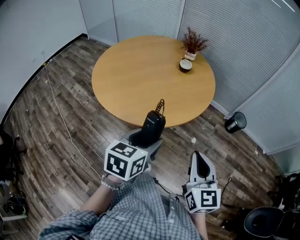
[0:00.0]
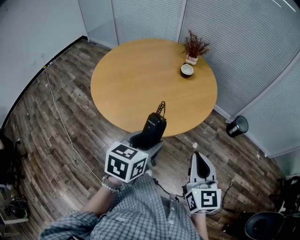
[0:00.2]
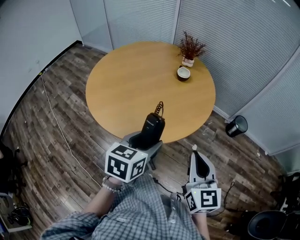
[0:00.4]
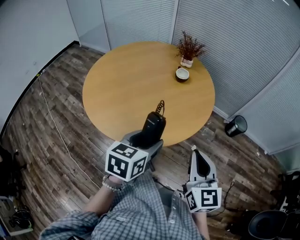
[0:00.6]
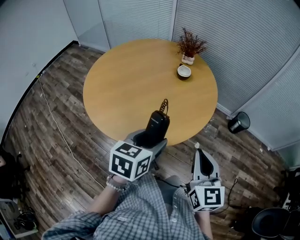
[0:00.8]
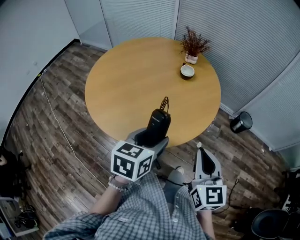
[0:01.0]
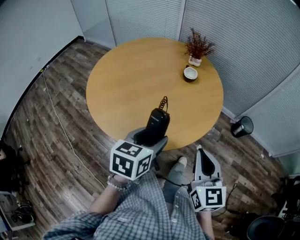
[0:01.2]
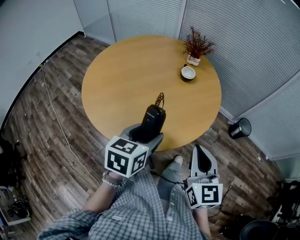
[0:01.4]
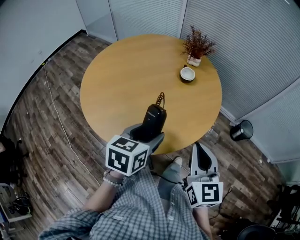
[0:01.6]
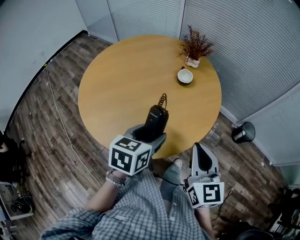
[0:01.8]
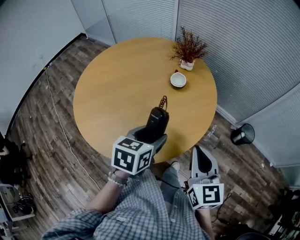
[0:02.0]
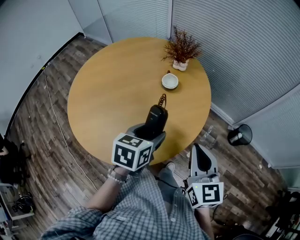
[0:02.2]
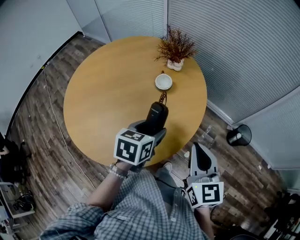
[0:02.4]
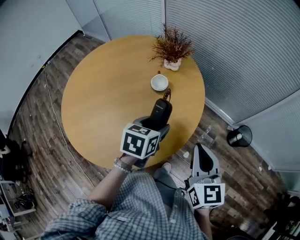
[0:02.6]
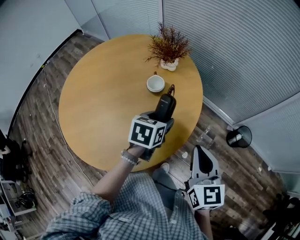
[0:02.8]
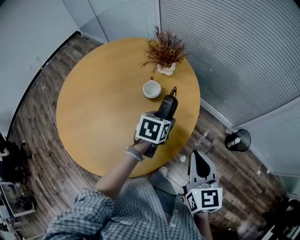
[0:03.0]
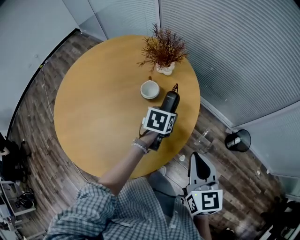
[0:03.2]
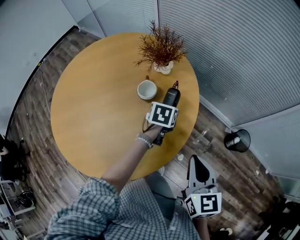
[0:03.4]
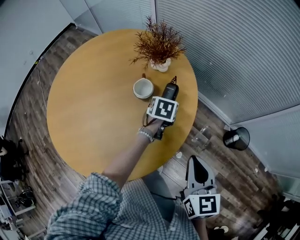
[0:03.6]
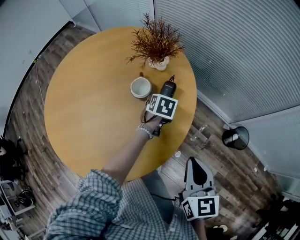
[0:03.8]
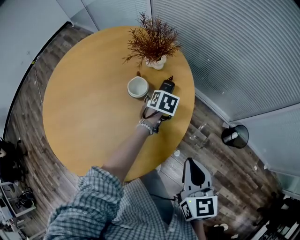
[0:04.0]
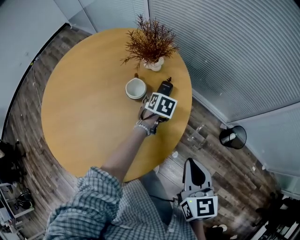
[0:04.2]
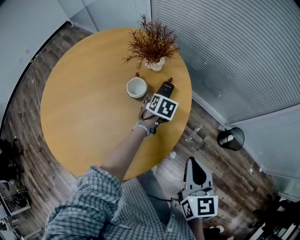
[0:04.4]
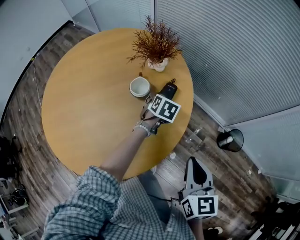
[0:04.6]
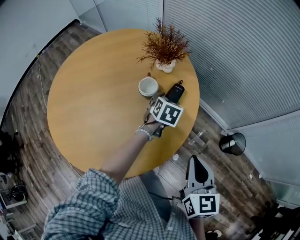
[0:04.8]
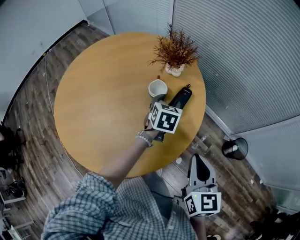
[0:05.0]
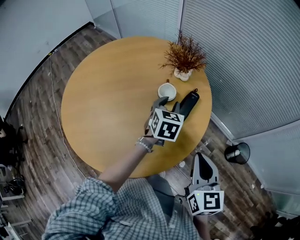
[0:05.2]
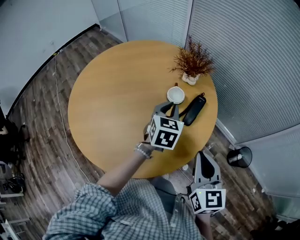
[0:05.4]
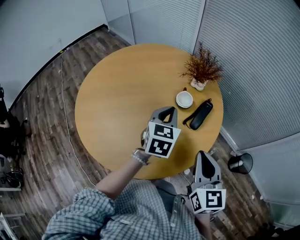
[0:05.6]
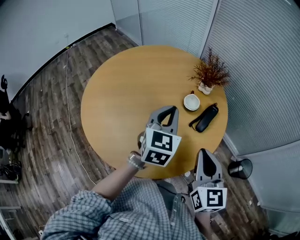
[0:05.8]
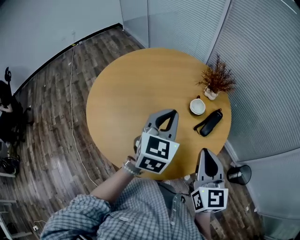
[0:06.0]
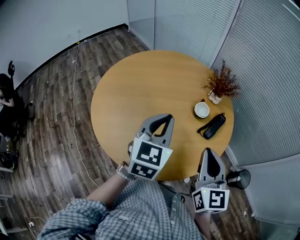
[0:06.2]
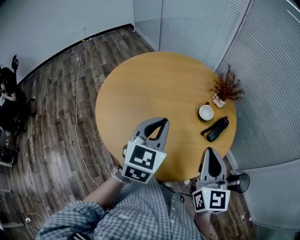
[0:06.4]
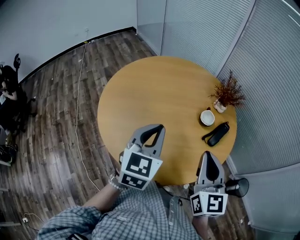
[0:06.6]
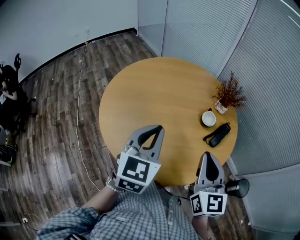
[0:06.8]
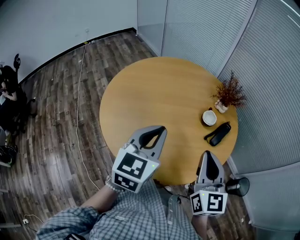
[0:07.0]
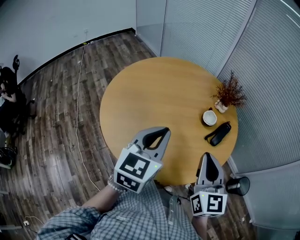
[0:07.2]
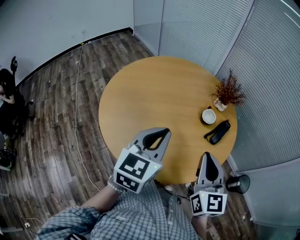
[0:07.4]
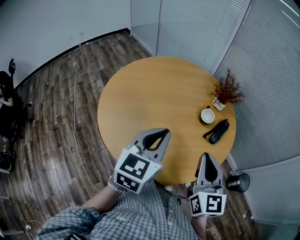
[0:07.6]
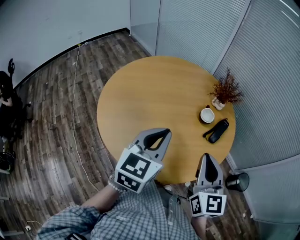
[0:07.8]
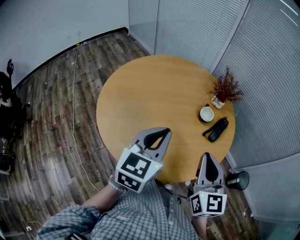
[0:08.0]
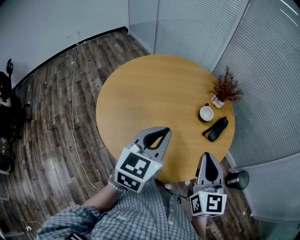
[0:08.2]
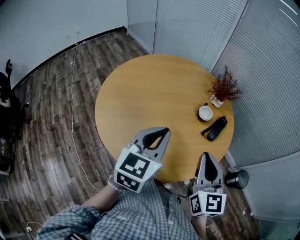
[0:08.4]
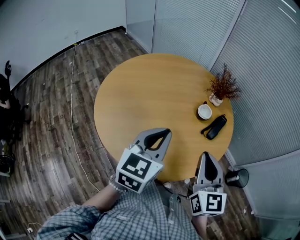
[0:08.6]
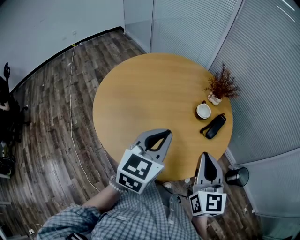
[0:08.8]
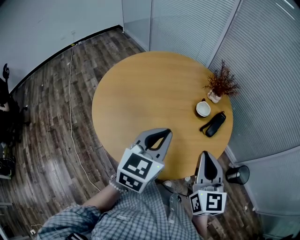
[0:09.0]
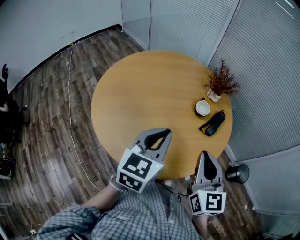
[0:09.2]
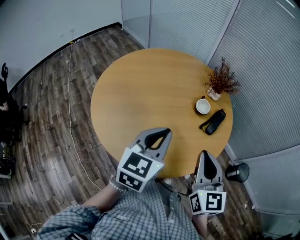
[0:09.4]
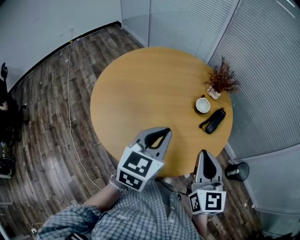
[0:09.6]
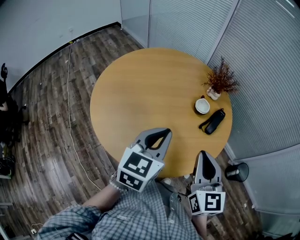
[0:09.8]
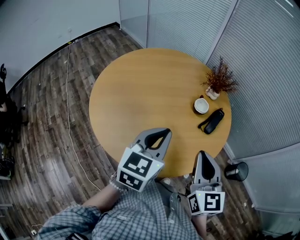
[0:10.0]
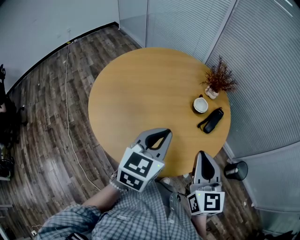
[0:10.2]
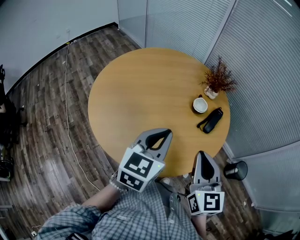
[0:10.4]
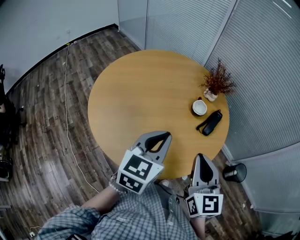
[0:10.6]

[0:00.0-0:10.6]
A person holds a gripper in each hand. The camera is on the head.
0:00.0 to 0:01.6: Both grippers move forward, roughly 20 cm.
0:01.6 to 0:03.0: Both grippers move forward and to the right, some 30 cm.
0:03.0 to 0:04.6: The right gripper shifts by roughly 5 cm, while the left gripper is displaced forward and downward by about 15 cm.
0:04.6 to 0:06.0: The left gripper shifts approximately 40 cm upward, to the left and backward, points its fingers about 40 degrees further upward, and closes up. The right gripper travels to the left and upward by approximately 20 cm, and rotates roughly 20 degrees.
0:06.0 to 0:07.6: The left gripper travels to the left and backward by approximately 15 cm, while the right gripper moves to the left, approximately 5 cm.
0:07.6 to 0:10.6: The grippers move only a little.

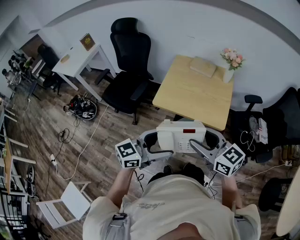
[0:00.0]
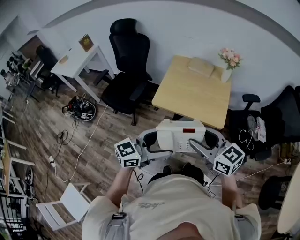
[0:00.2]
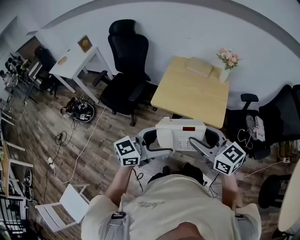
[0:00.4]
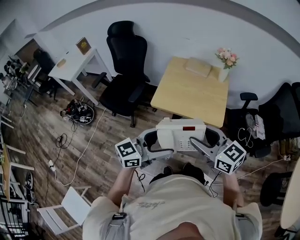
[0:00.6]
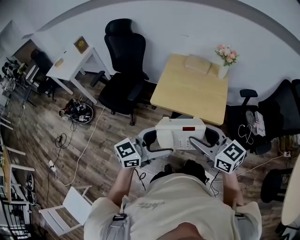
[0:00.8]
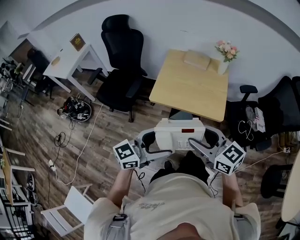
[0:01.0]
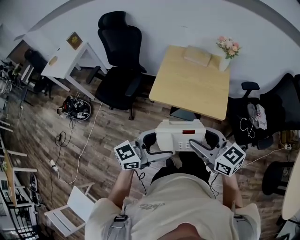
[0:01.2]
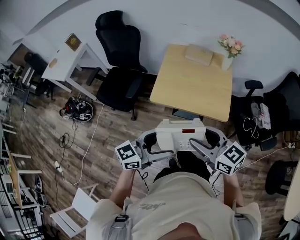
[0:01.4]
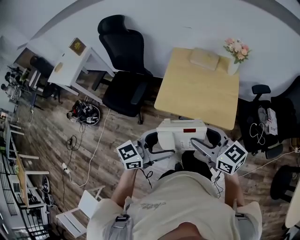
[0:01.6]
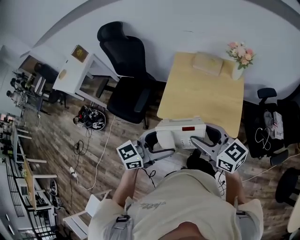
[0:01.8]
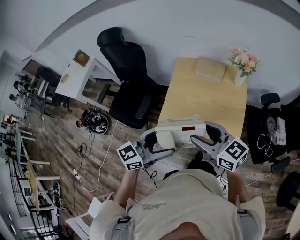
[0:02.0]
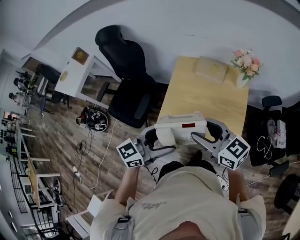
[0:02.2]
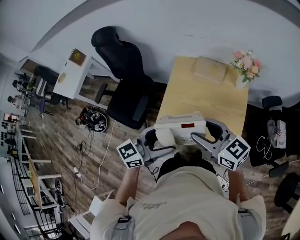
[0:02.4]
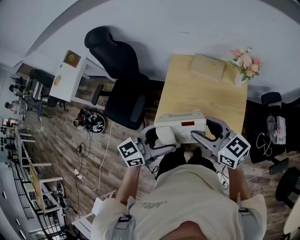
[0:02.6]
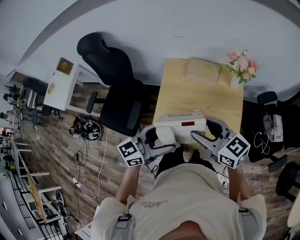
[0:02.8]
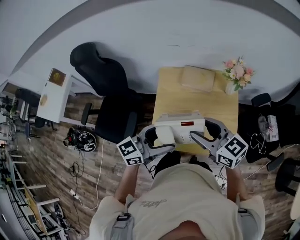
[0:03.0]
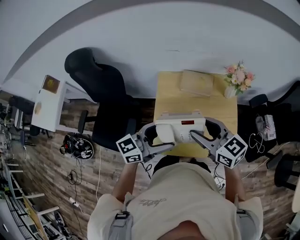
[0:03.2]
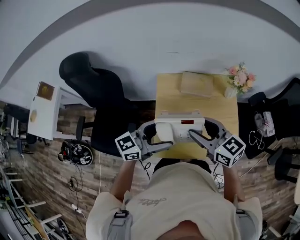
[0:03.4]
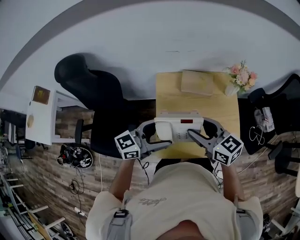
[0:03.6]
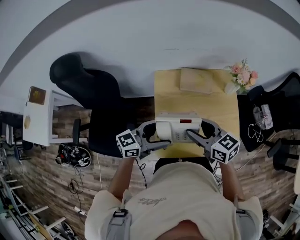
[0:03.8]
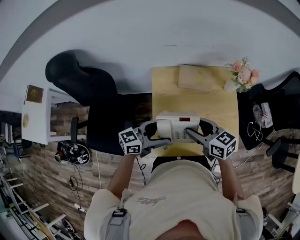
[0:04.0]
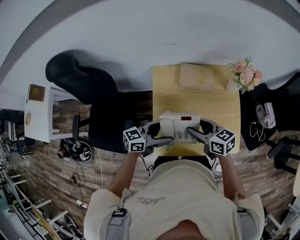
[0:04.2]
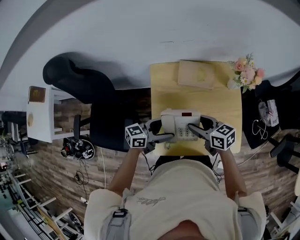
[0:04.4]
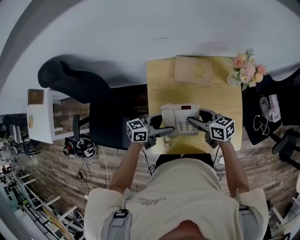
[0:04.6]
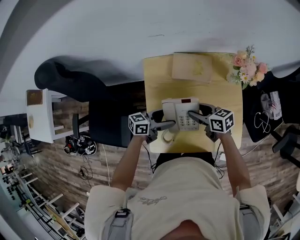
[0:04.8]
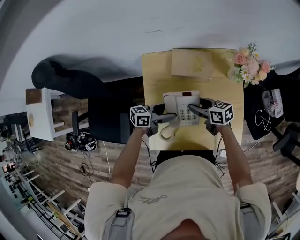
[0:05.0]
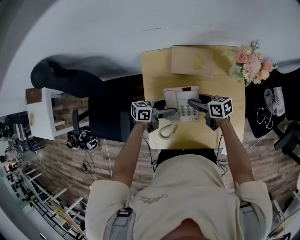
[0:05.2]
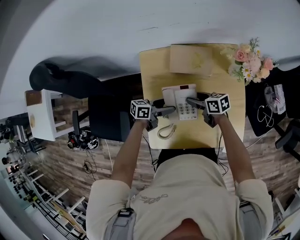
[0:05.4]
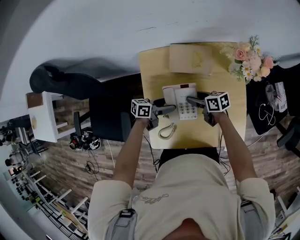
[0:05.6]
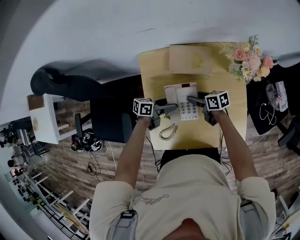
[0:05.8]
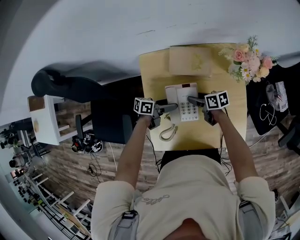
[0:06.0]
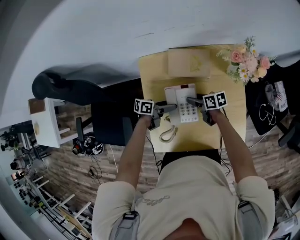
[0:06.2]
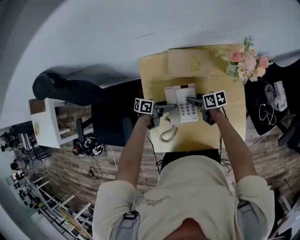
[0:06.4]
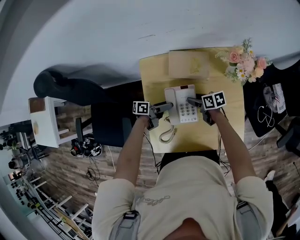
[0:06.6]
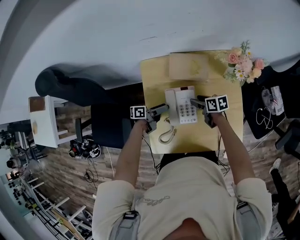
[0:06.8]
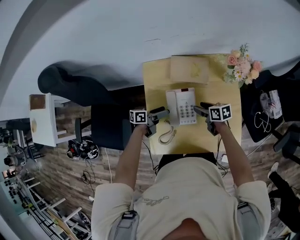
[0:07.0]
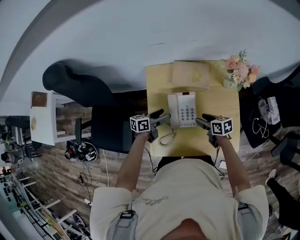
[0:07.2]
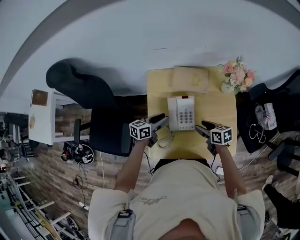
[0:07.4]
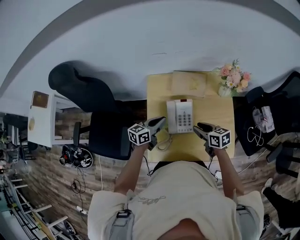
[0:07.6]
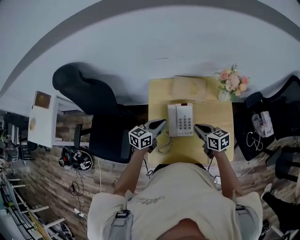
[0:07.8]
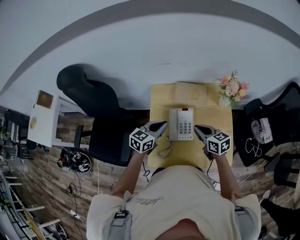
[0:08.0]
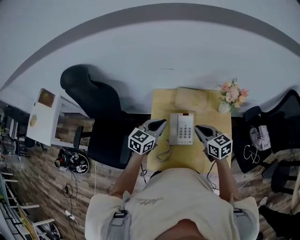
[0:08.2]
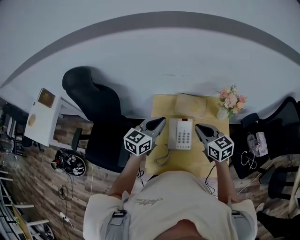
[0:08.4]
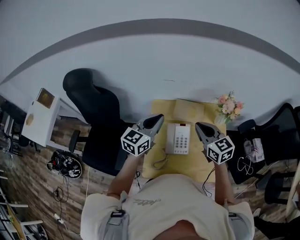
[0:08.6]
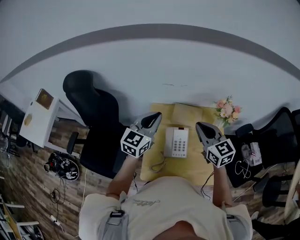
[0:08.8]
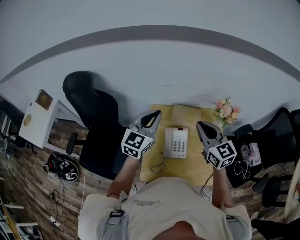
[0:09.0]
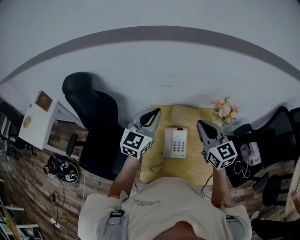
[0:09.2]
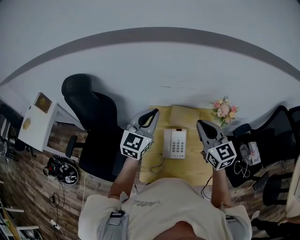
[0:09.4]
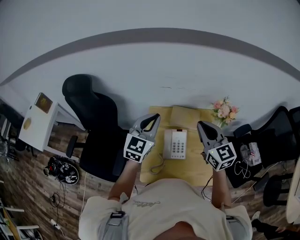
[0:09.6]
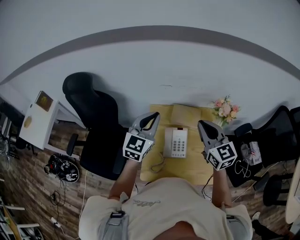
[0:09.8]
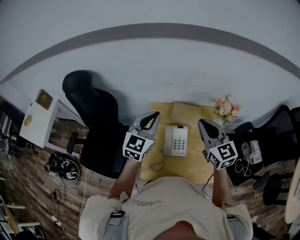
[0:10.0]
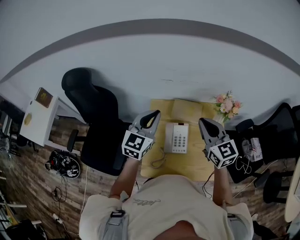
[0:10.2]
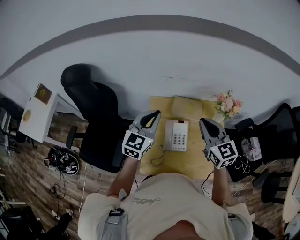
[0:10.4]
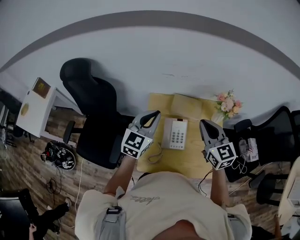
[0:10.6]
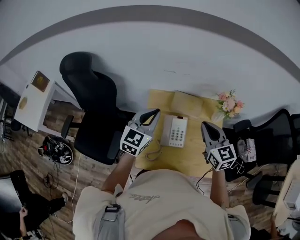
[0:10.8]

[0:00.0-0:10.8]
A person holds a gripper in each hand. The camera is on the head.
0:00.0 to 0:01.6: Both grippers move forward, approximately 10 cm.
0:01.6 to 0:03.0: The grippers both shift forward by about 30 cm.
0:03.0 to 0:04.6: Both grippers travel together downward, about 20 cm. The right gripper rotates about 30 degrees. Meanwhile the left gripper turns by some 30 degrees.
0:04.6 to 0:06.2: Both grippers travel together downward, roughly 15 cm. The right gripper swivels approximately 20 degrees. The left gripper changes its angle by about 30 degrees.
0:06.2 to 0:07.8: The two grippers go about 15 cm upward. The right gripper turns by some 30 degrees, and closes. Meanwhile the left gripper changes its angle by approximately 50 degrees, and closes its fingers.
0:07.8 to 0:09.2: The grippers both shift upward by approximately 25 cm. The left gripper rotates approximately 40 degrees. The right gripper changes its angle by approximately 40 degrees.
0:09.2 to 0:10.8: Both grippers travel together downward, roughly 5 cm.

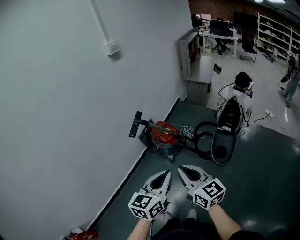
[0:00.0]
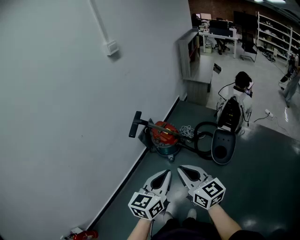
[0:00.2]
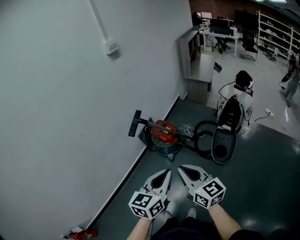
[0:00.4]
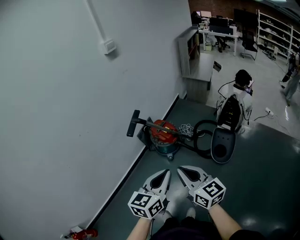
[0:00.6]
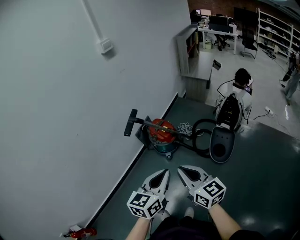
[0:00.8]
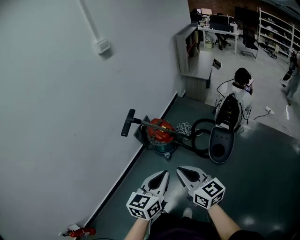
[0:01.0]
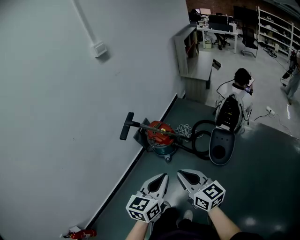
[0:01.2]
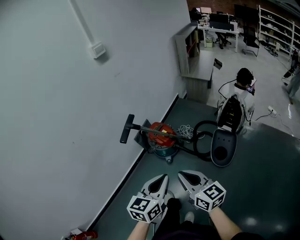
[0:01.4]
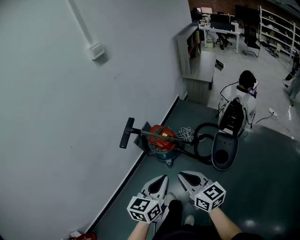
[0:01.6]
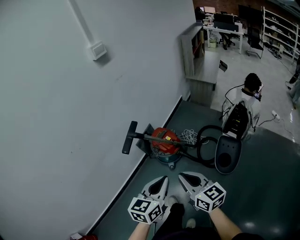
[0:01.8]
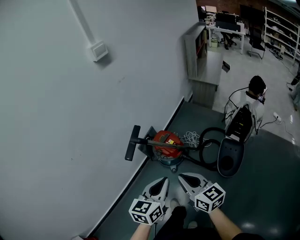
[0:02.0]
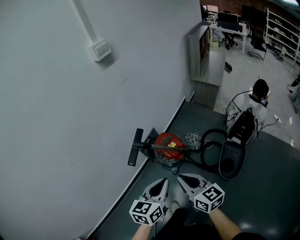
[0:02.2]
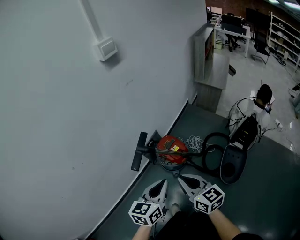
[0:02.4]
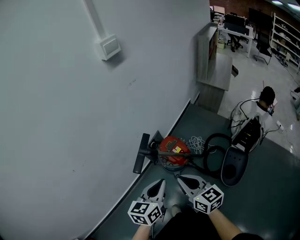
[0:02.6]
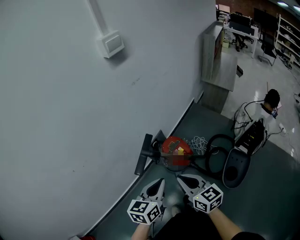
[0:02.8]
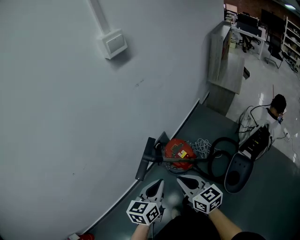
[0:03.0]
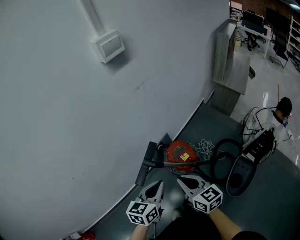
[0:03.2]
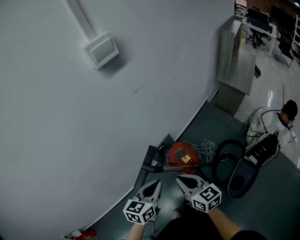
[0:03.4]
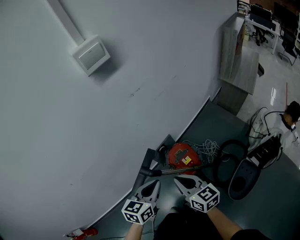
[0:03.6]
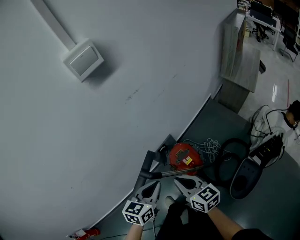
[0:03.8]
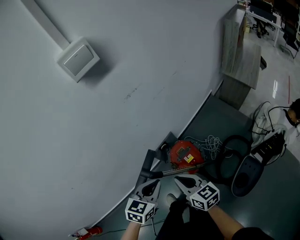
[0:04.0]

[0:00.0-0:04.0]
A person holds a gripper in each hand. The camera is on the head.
0:00.0 to 0:01.4: The left gripper moves forward and to the right, about 10 cm. The right gripper heads to the right and forward, covering approximately 10 cm.
0:01.4 to 0:02.6: Both grippers travel together forward and to the left, approximately 25 cm.
0:02.6 to 0:04.0: The left gripper travels forward by roughly 20 cm, and swivels about 20 degrees, while the right gripper moves forward and downward, about 20 cm.
